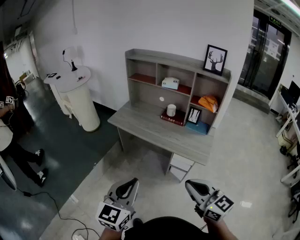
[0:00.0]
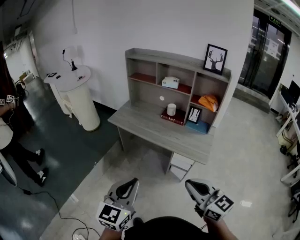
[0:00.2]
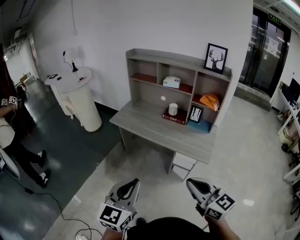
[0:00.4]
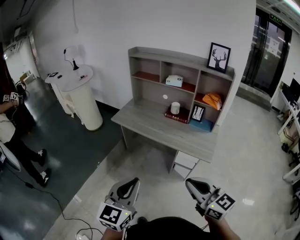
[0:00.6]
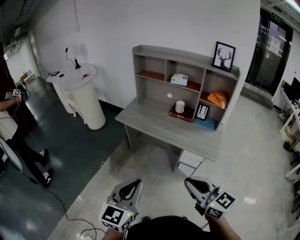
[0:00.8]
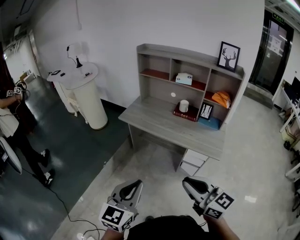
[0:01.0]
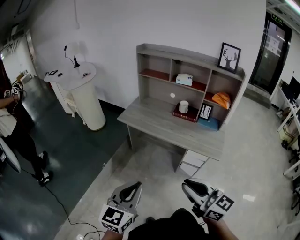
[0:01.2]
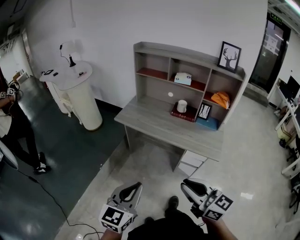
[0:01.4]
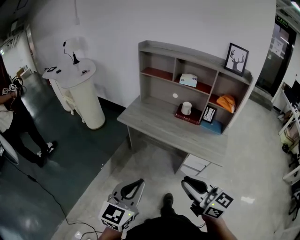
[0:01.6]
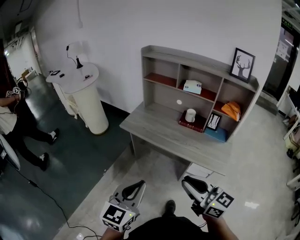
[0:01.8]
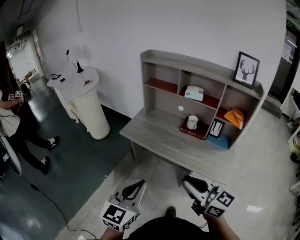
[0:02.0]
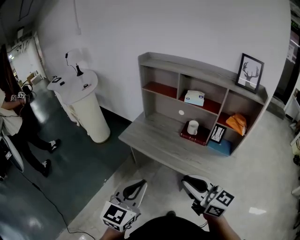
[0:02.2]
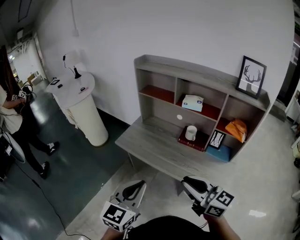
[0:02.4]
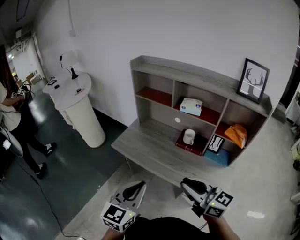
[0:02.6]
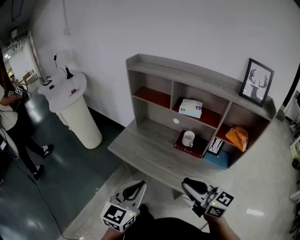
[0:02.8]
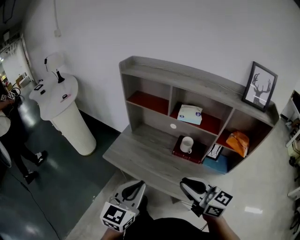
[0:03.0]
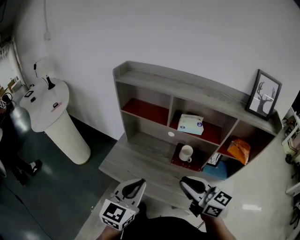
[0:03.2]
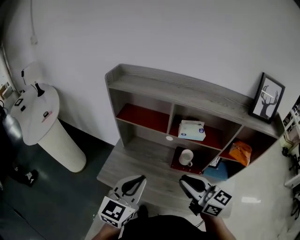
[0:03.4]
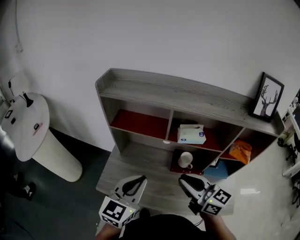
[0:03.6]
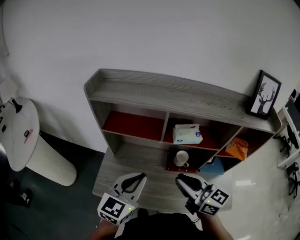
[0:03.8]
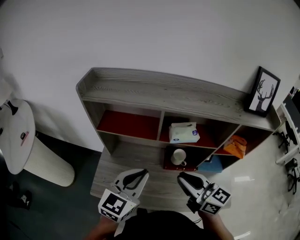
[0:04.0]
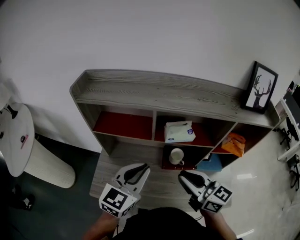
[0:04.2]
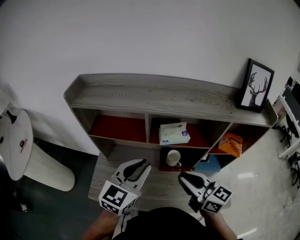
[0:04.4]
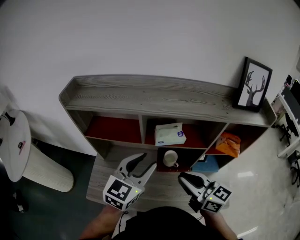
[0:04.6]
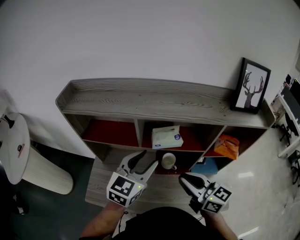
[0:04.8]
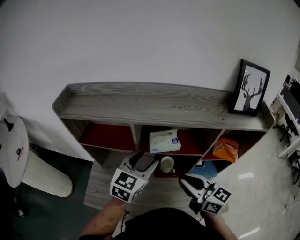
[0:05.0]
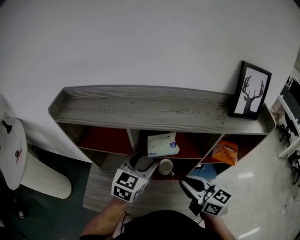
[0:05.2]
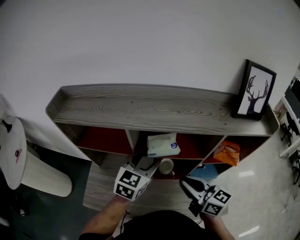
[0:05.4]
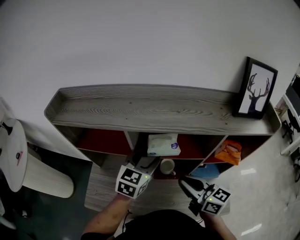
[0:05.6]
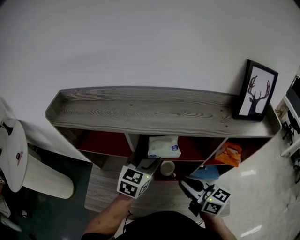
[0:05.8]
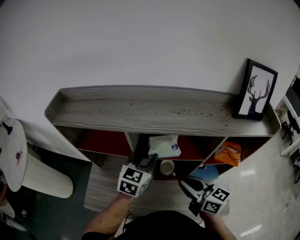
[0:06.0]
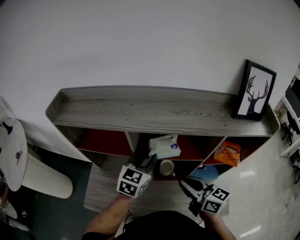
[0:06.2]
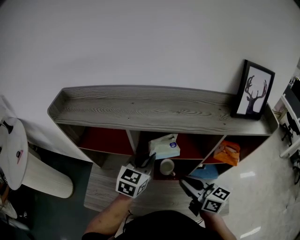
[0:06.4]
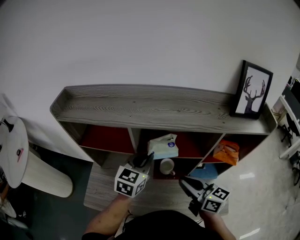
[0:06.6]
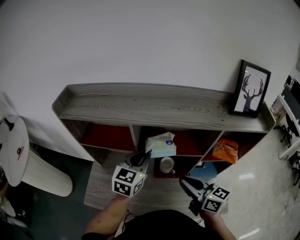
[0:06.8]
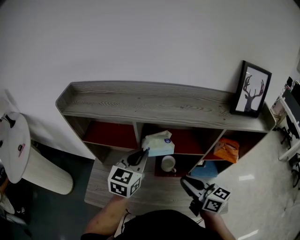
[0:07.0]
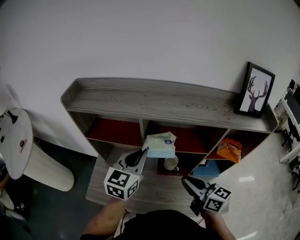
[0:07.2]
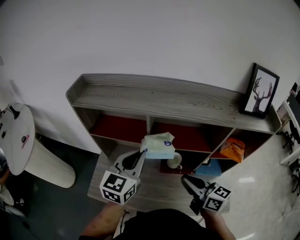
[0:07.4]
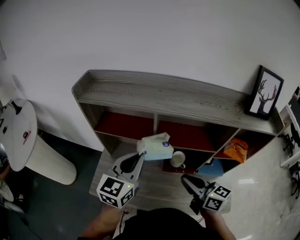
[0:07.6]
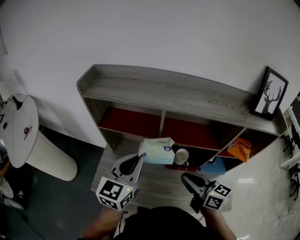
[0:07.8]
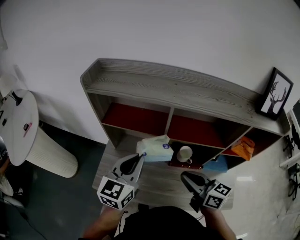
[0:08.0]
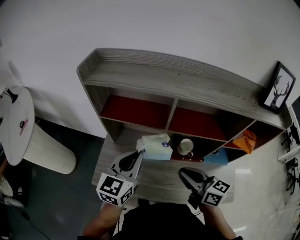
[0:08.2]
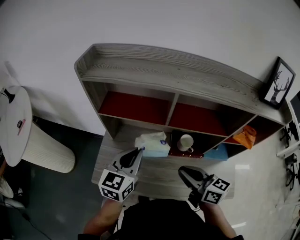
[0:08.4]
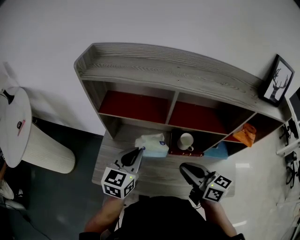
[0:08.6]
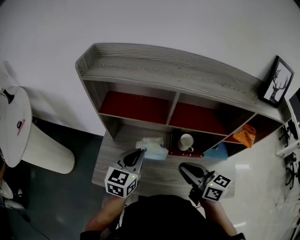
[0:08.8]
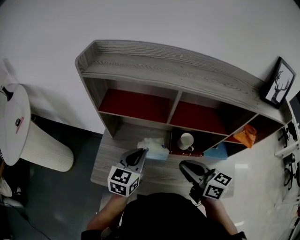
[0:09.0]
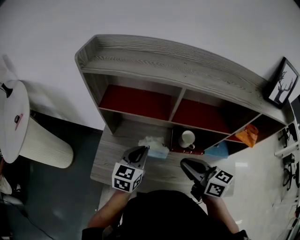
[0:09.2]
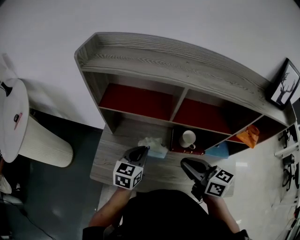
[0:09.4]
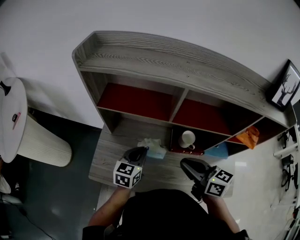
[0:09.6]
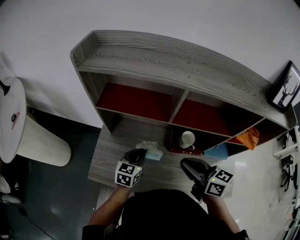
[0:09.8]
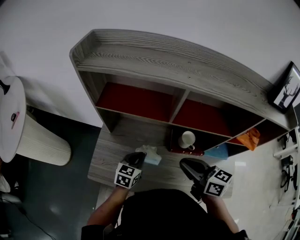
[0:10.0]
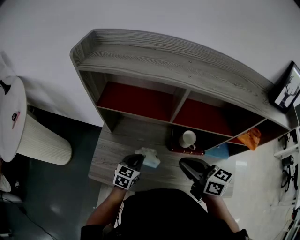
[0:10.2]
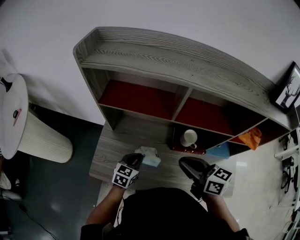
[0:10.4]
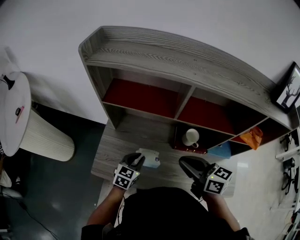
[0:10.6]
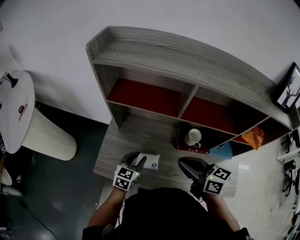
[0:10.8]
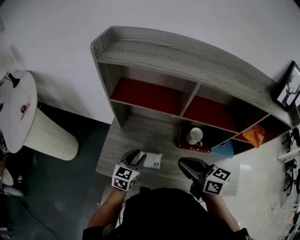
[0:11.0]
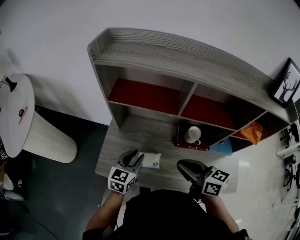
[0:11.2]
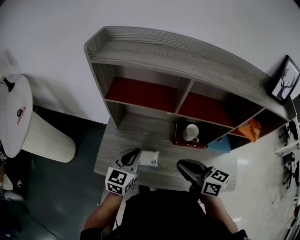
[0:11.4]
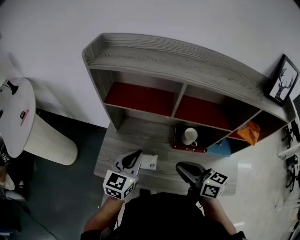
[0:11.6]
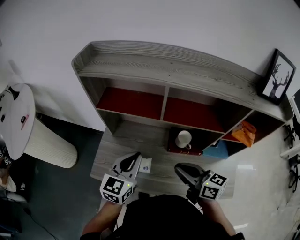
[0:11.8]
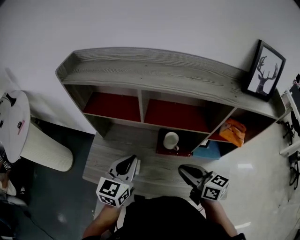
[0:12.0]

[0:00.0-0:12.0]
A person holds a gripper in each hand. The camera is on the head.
0.0 to 1.6 s: The grippers both shift to the left and forward by some 15 cm.
1.6 to 3.0 s: The grippers both shift forward by some 35 cm.
3.0 to 4.4 s: The left gripper moves some 30 cm, and swivels roughly 30 degrees; the right gripper shifts by roughly 20 cm, and changes its angle by about 20 degrees.
4.4 to 6.0 s: The left gripper goes about 15 cm forward, to the right and downward, and opens. The right gripper goes approximately 10 cm to the right and forward.
6.0 to 7.6 s: The left gripper moves to the left, backward and upward, approximately 15 cm, and closes. The right gripper shifts roughly 5 cm to the left.
7.6 to 9.0 s: The left gripper shifts roughly 15 cm downward, while the right gripper goes roughly 5 cm to the left.
9.0 to 10.4 s: The left gripper shifts about 15 cm downward.
10.4 to 12.0 s: The left gripper heads upward, covering roughly 20 cm, and opens, then closes once more. The right gripper is displaced to the right and backward by some 10 cm.

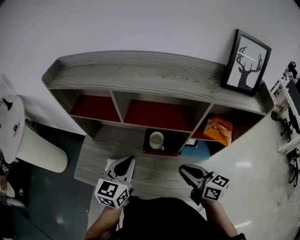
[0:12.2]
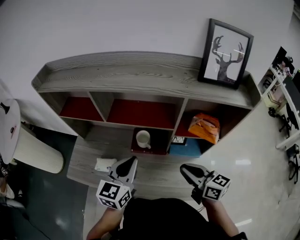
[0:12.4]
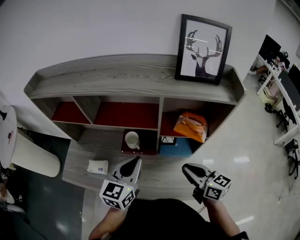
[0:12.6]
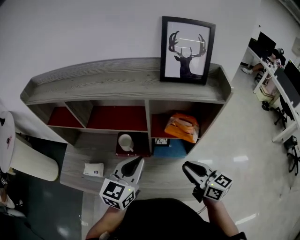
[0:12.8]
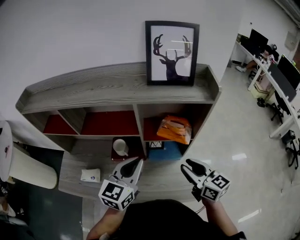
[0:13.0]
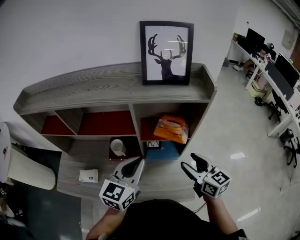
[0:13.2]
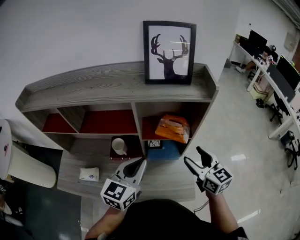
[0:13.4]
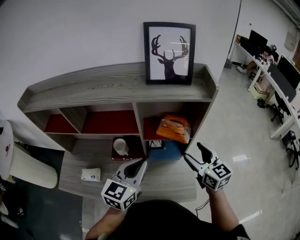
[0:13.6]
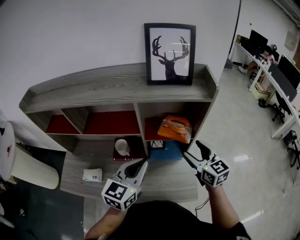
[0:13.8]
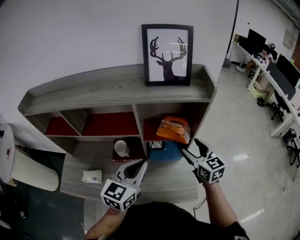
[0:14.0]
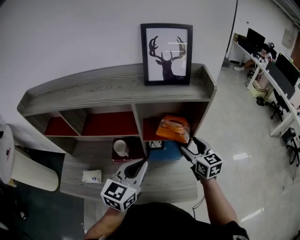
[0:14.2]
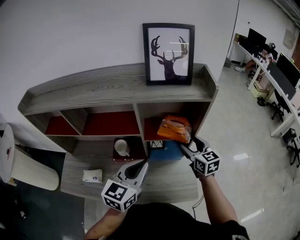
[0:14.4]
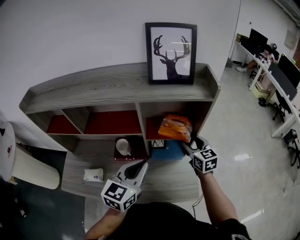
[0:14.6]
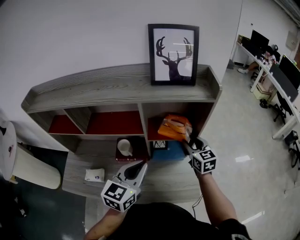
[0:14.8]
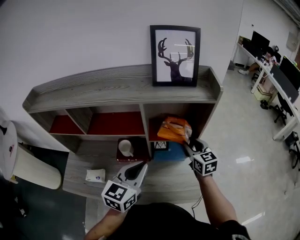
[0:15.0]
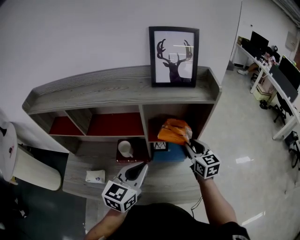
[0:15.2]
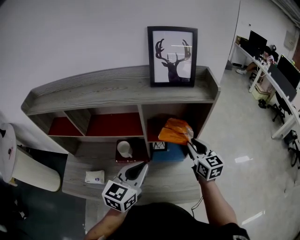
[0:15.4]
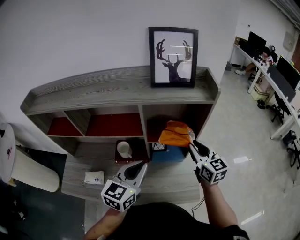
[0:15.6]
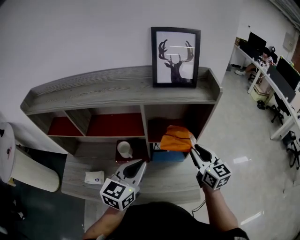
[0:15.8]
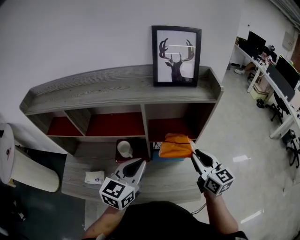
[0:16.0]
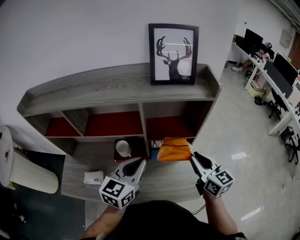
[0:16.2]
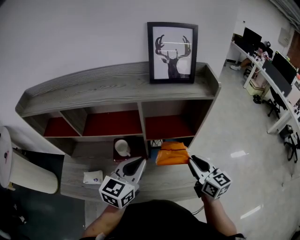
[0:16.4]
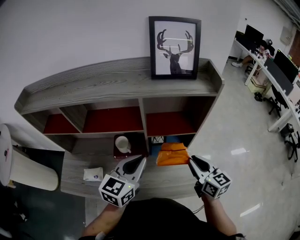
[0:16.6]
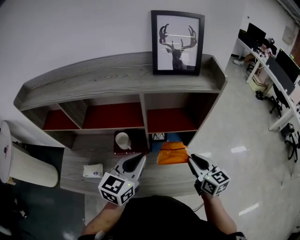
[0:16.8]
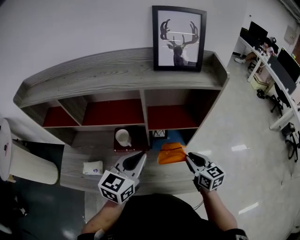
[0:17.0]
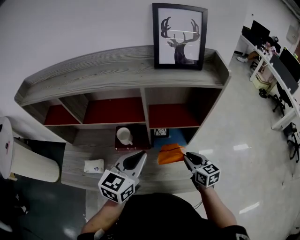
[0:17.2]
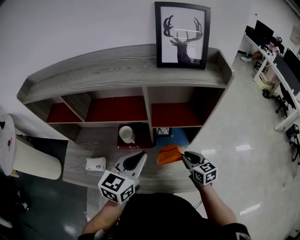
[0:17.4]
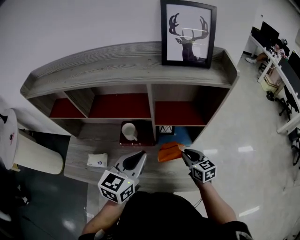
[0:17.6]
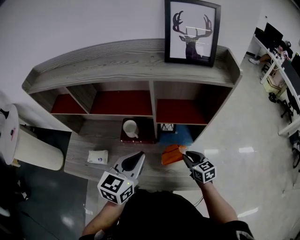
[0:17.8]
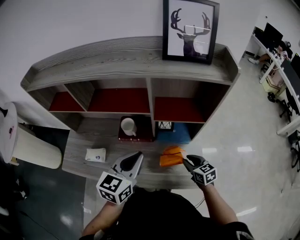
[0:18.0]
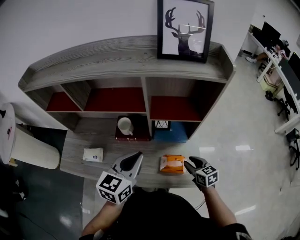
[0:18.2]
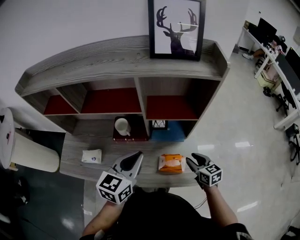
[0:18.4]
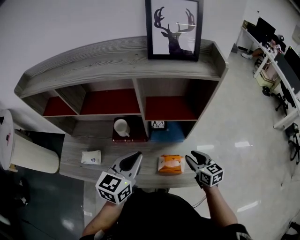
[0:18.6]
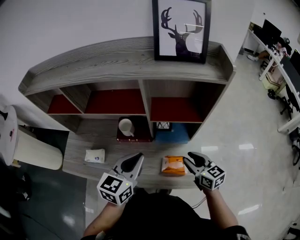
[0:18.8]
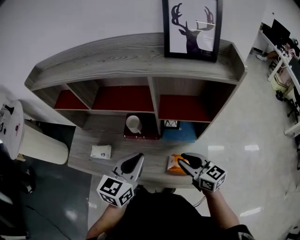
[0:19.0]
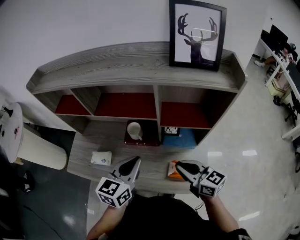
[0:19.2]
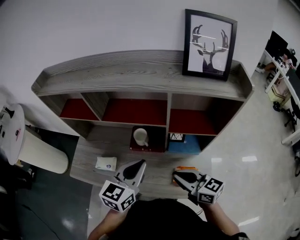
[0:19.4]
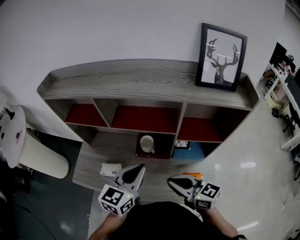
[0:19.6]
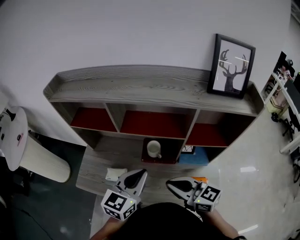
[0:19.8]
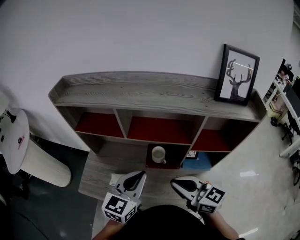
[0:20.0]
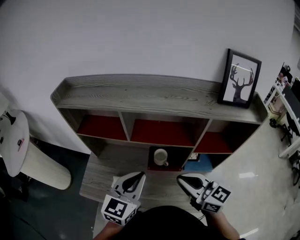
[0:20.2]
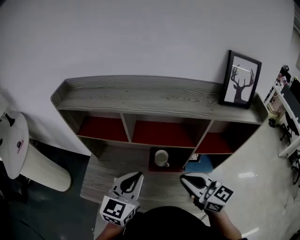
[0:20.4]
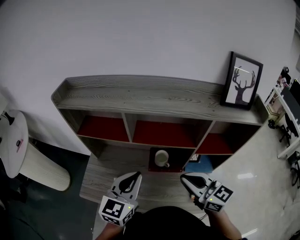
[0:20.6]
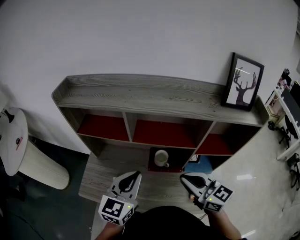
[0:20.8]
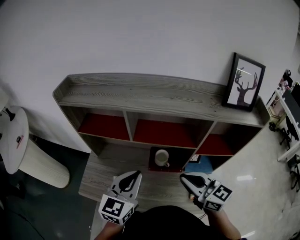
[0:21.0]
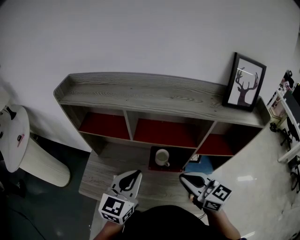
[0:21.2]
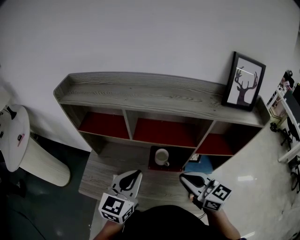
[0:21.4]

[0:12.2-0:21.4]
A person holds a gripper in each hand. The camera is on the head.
12.2 to 13.8 s: The grippers both shift to the right by some 25 cm. The right gripper changes its angle by approximately 30 degrees, and opens its fingers.
13.8 to 15.2 s: The right gripper changes place by approximately 5 cm, and closes up.
15.2 to 16.8 s: The right gripper travels backward by approximately 10 cm.
16.8 to 18.4 s: The right gripper heads downward, covering some 15 cm.
18.4 to 19.8 s: The right gripper is displaced to the left and upward by approximately 35 cm, turns by about 40 degrees, and closes its fingers; the left gripper moves to the left, about 15 cm.
19.8 to 21.4 s: The right gripper changes place by roughly 5 cm. The left gripper shifts roughly 5 cm to the left.

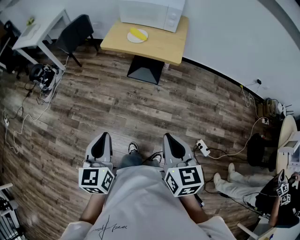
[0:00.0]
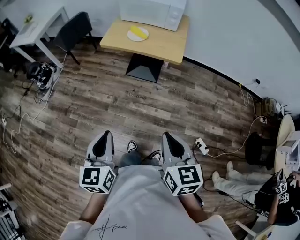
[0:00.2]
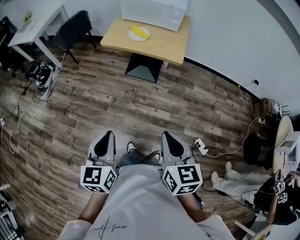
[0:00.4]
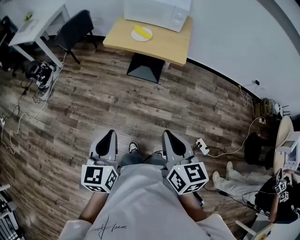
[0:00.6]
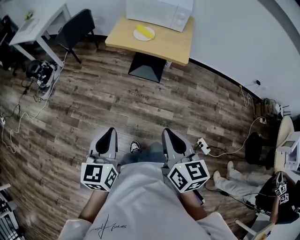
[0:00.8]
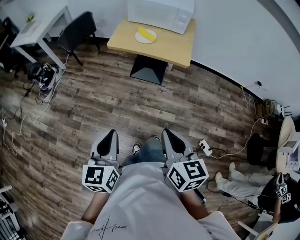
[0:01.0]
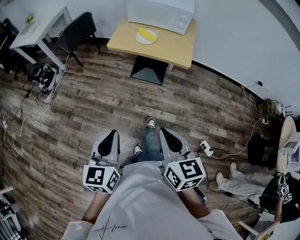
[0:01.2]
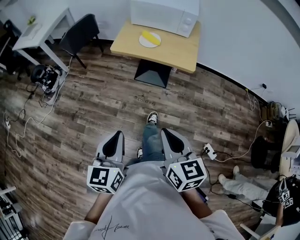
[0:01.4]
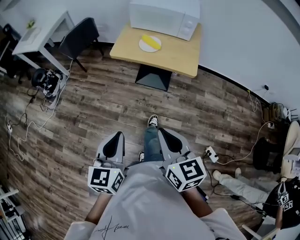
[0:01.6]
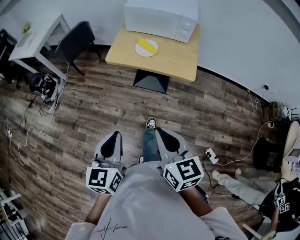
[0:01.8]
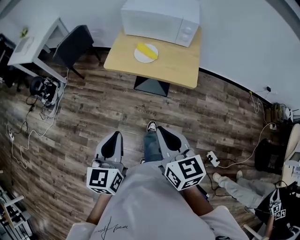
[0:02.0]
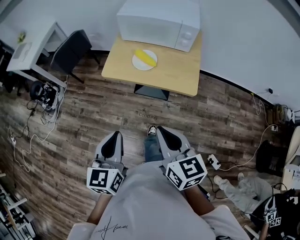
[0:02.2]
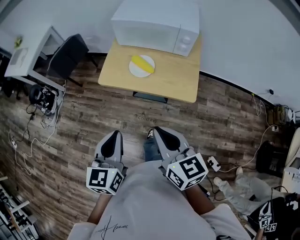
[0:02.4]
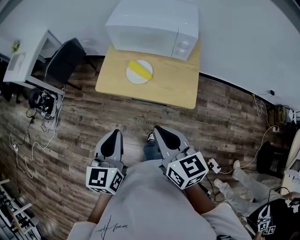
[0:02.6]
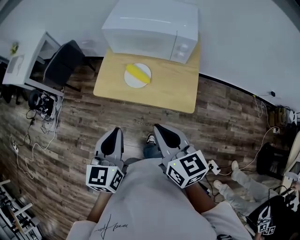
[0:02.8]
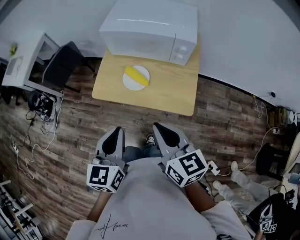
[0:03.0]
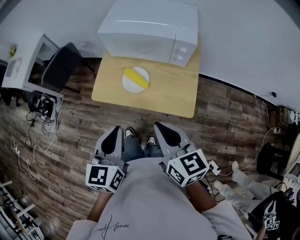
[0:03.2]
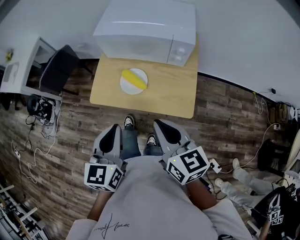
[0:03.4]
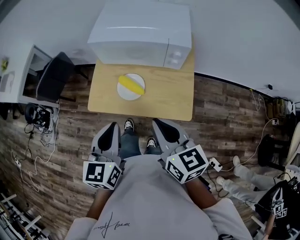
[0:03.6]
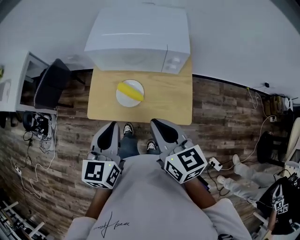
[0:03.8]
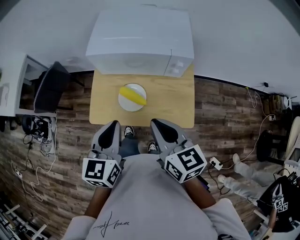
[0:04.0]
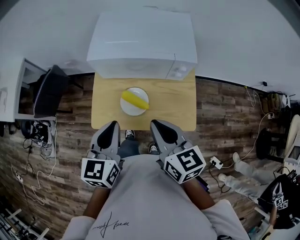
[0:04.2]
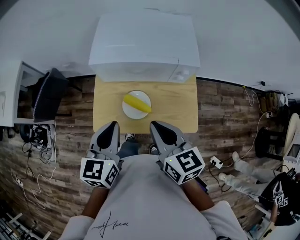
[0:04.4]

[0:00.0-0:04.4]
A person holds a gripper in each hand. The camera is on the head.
0.0 to 1.4 s: The right gripper heads to the left and forward, covering some 15 cm. Meanwhile the left gripper is displaced forward by some 10 cm.
1.4 to 3.0 s: The two grippers go about 35 cm forward.
3.0 to 4.4 s: Both grippers travel together forward, some 20 cm.
